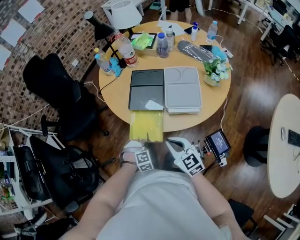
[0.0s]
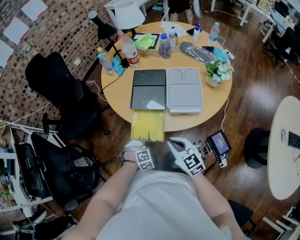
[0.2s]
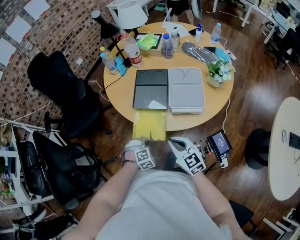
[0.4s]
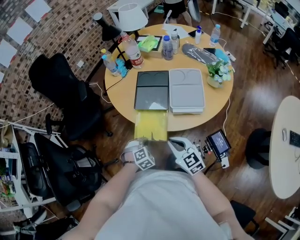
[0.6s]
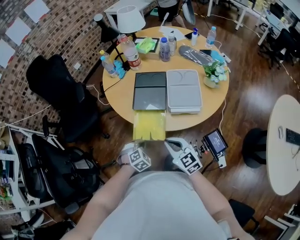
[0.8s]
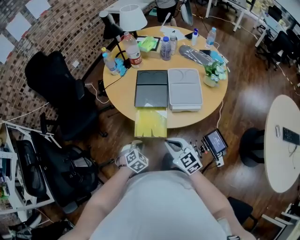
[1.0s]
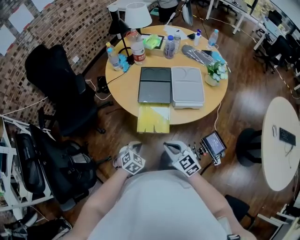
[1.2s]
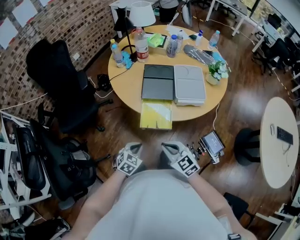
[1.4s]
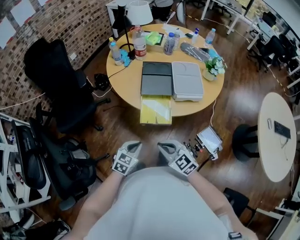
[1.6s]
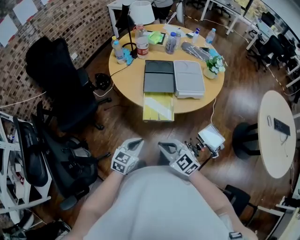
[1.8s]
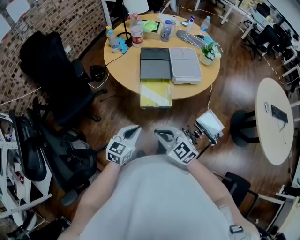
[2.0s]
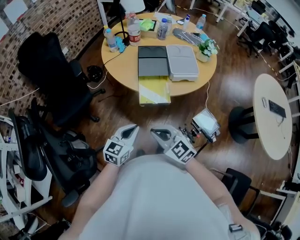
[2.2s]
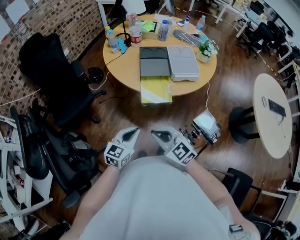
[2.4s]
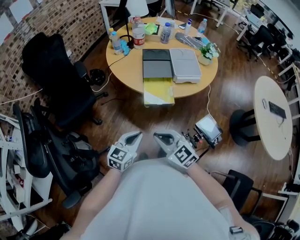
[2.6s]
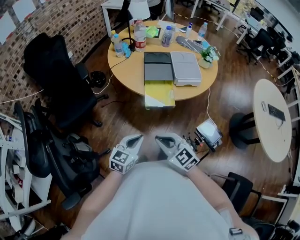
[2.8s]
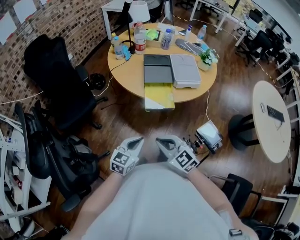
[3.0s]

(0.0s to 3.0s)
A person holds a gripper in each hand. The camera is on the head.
0.0s - 1.6s: The right gripper goes some 20 cm to the left and backward, while the left gripper heads upward, to the left and backward, covering about 20 cm, and rotates approximately 60 degrees.
1.6s - 3.0s: The right gripper is displaced backward and to the left by approximately 10 cm, while the left gripper travels backward and upward by about 10 cm.

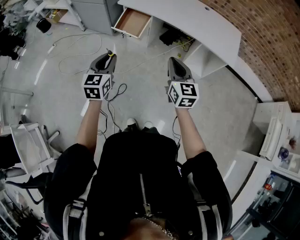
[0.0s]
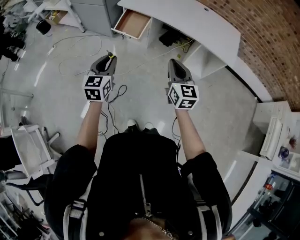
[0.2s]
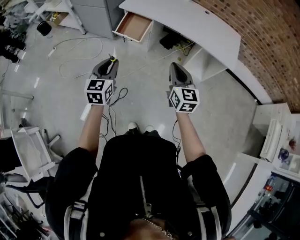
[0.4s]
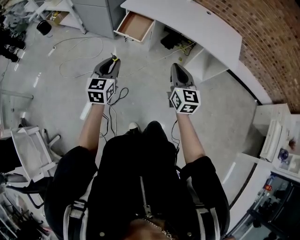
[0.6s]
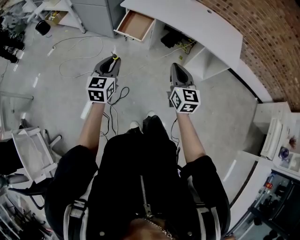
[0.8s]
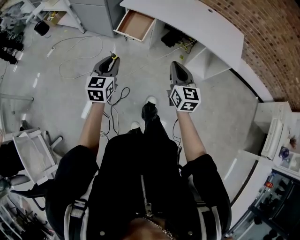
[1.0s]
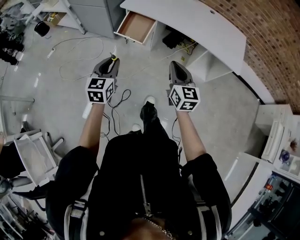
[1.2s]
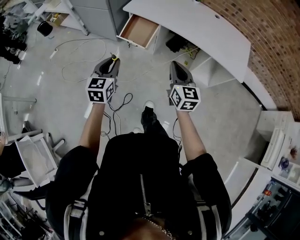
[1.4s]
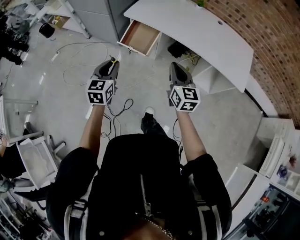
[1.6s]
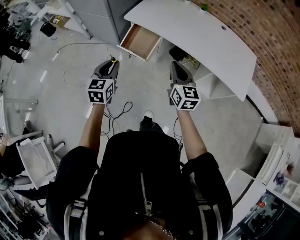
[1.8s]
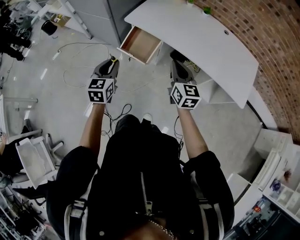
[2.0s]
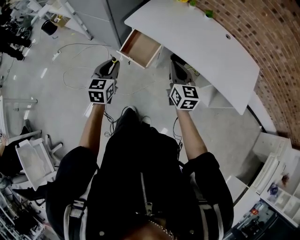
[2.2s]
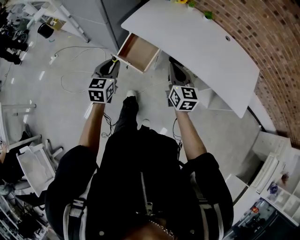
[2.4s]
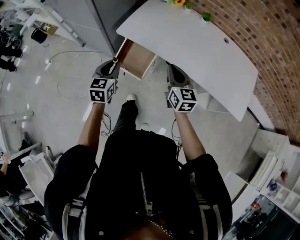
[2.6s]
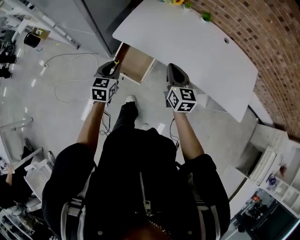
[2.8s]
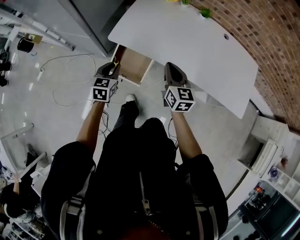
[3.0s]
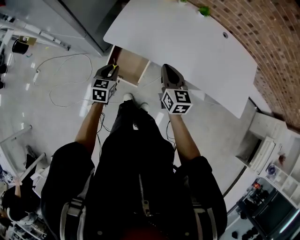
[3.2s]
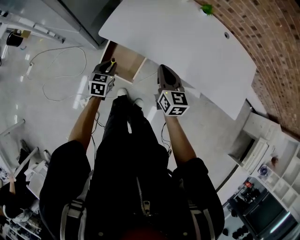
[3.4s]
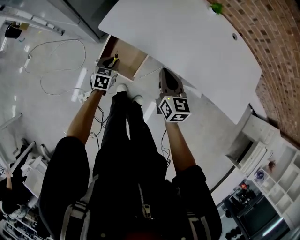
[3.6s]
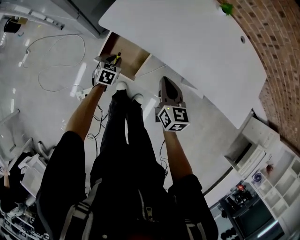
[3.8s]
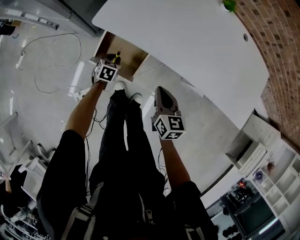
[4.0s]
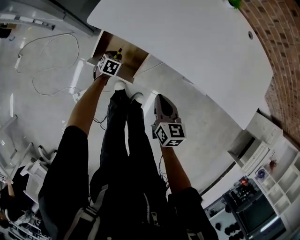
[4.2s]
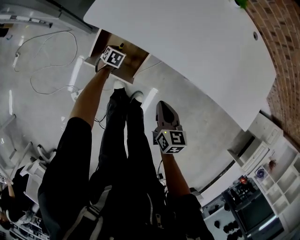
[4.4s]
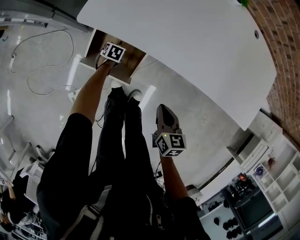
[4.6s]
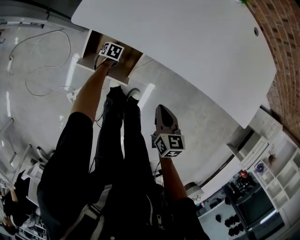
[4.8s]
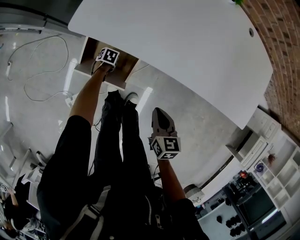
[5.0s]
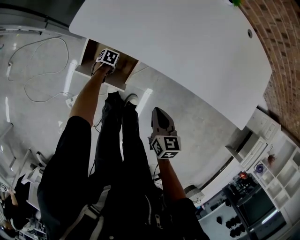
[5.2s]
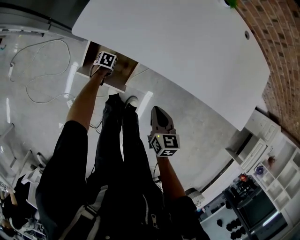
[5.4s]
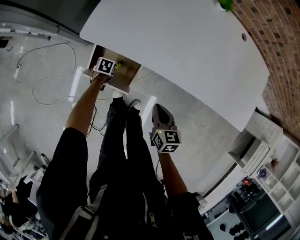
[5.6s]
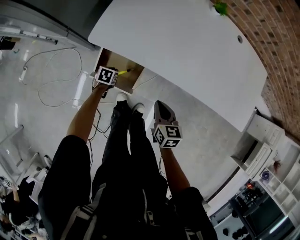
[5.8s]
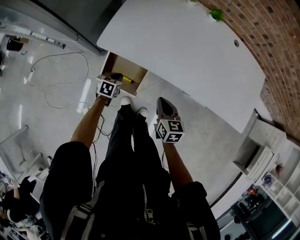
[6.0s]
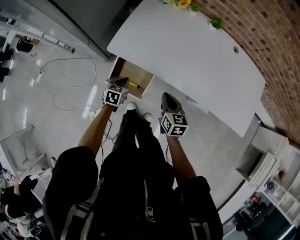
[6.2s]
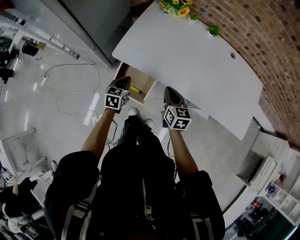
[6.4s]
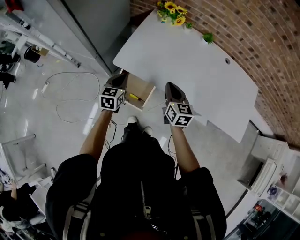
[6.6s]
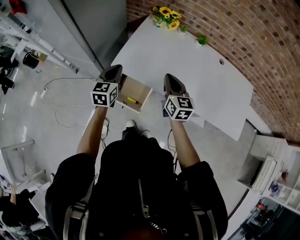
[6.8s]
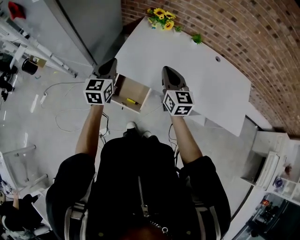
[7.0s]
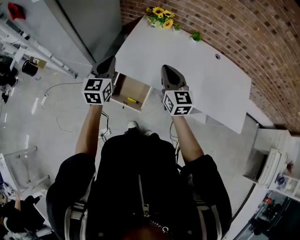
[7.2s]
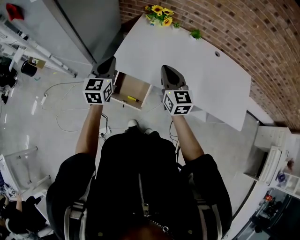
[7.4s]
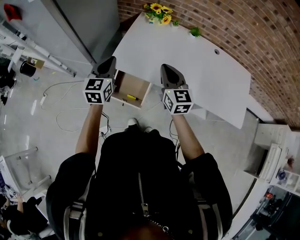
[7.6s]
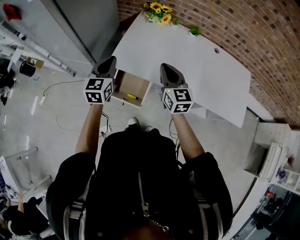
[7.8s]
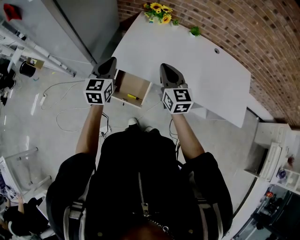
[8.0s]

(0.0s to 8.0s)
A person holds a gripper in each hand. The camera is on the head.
0.0s - 1.6s: The two grippers go about 20 cm forward.
1.6s - 3.2s: The right gripper shifts roughly 35 cm forward. Meanwhile the left gripper is displaced forward and downward by approximately 40 cm, and rotates roughly 20 degrees.
3.2s - 4.8s: The right gripper goes about 25 cm downward and backward, and rotates some 30 degrees, while the left gripper heads downward, covering about 40 cm, and tips its fingers downward by approximately 40 degrees.
4.8s - 6.4s: The left gripper travels upward by some 40 cm, and tilts its fingers roughly 40 degrees upward; the right gripper shifts some 15 cm upward.
6.4s - 8.0s: The grippers both shift upward by about 20 cm. The right gripper turns by approximately 20 degrees, while the left gripper turns by approximately 30 degrees.

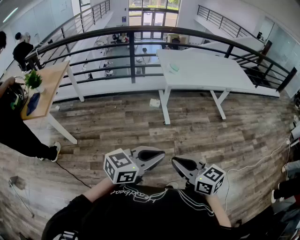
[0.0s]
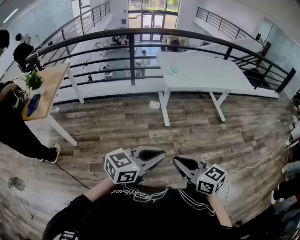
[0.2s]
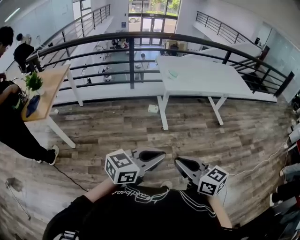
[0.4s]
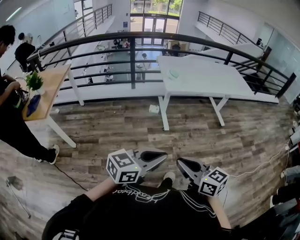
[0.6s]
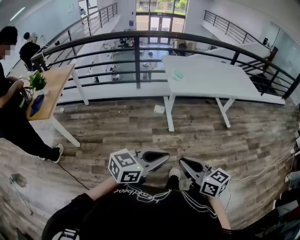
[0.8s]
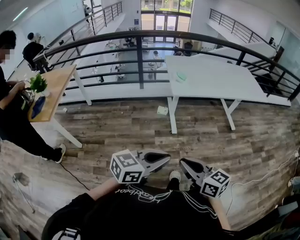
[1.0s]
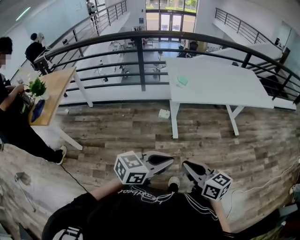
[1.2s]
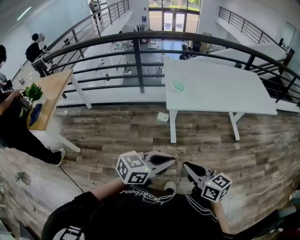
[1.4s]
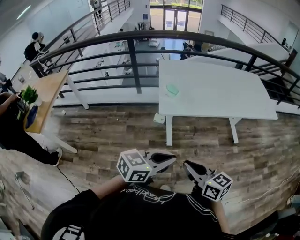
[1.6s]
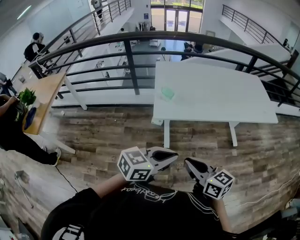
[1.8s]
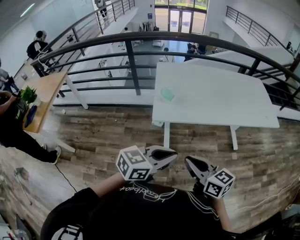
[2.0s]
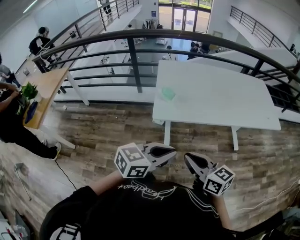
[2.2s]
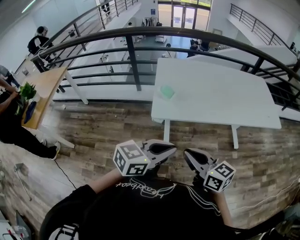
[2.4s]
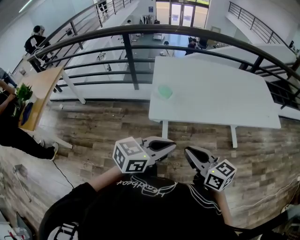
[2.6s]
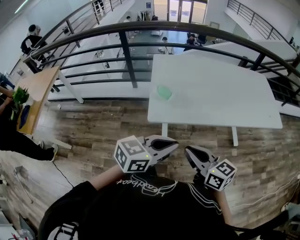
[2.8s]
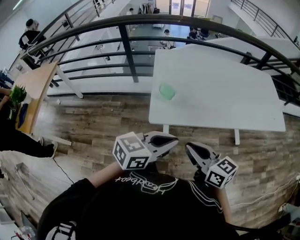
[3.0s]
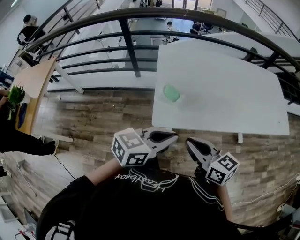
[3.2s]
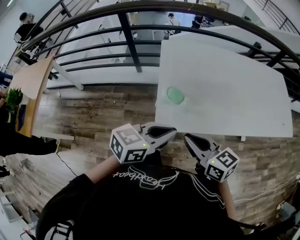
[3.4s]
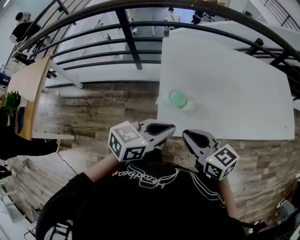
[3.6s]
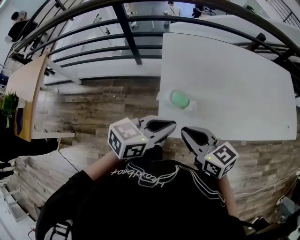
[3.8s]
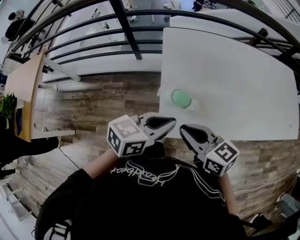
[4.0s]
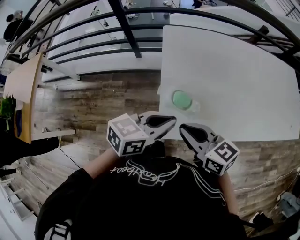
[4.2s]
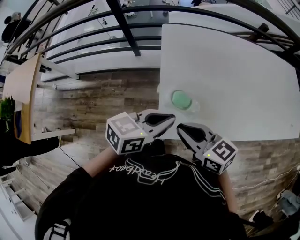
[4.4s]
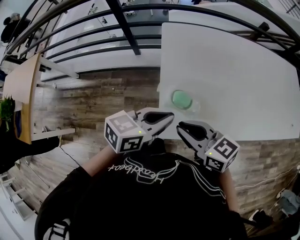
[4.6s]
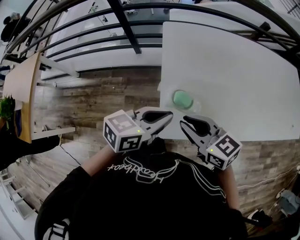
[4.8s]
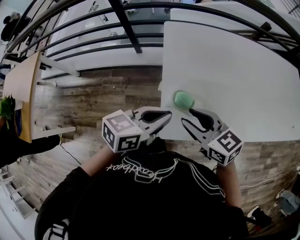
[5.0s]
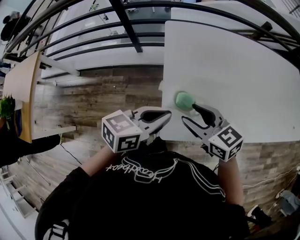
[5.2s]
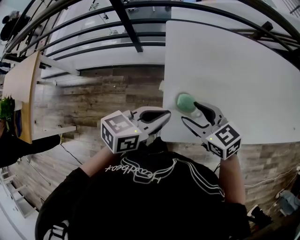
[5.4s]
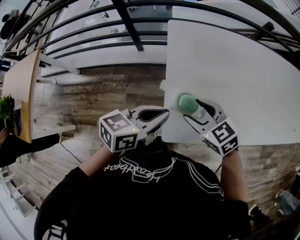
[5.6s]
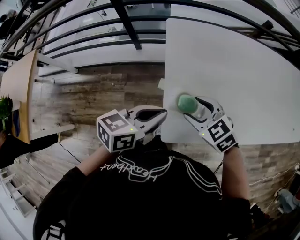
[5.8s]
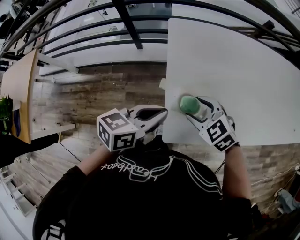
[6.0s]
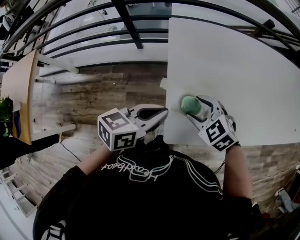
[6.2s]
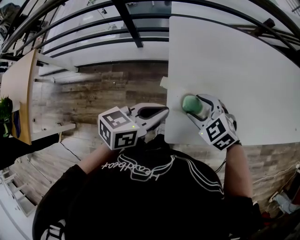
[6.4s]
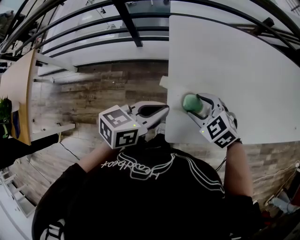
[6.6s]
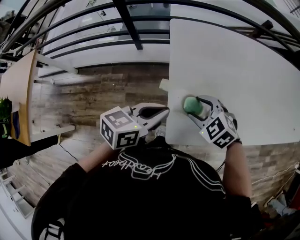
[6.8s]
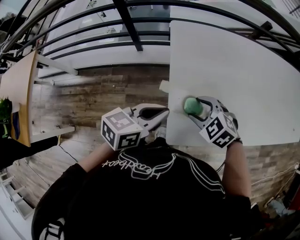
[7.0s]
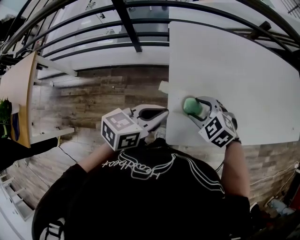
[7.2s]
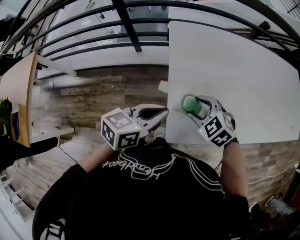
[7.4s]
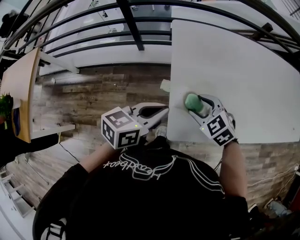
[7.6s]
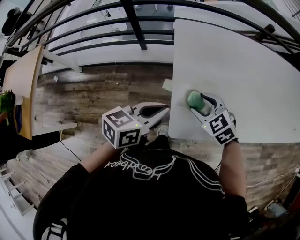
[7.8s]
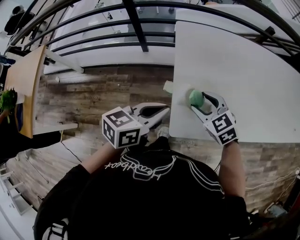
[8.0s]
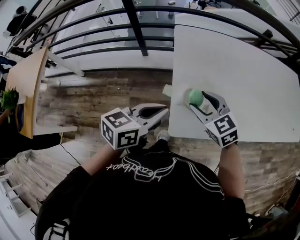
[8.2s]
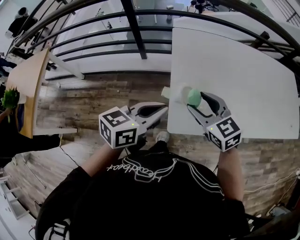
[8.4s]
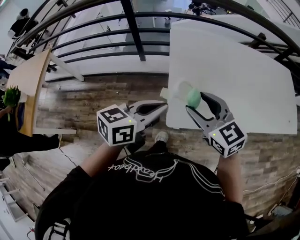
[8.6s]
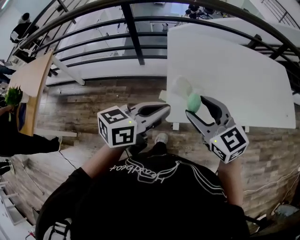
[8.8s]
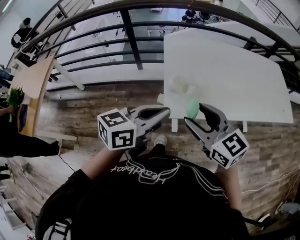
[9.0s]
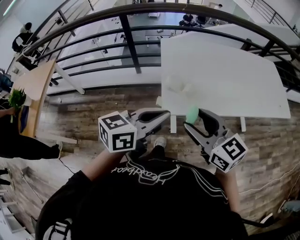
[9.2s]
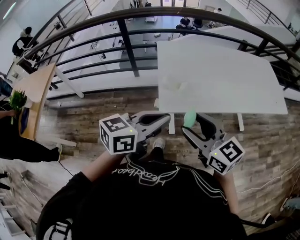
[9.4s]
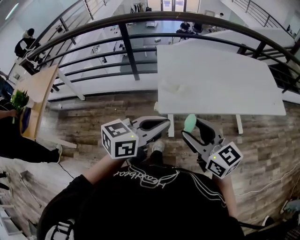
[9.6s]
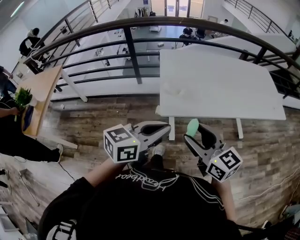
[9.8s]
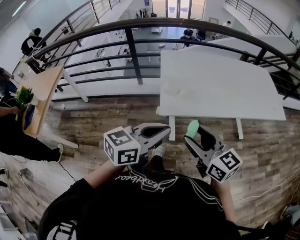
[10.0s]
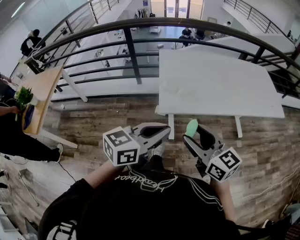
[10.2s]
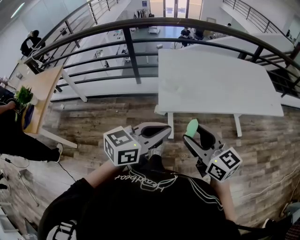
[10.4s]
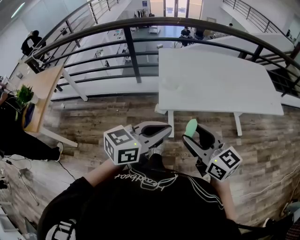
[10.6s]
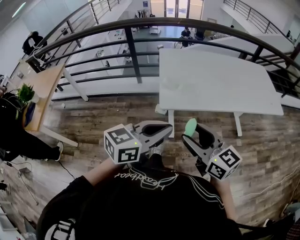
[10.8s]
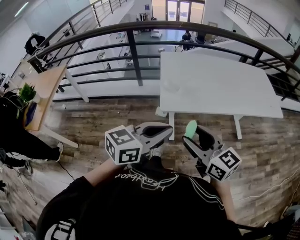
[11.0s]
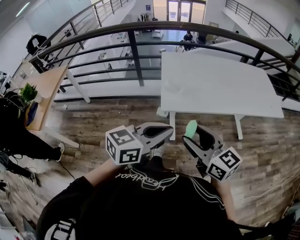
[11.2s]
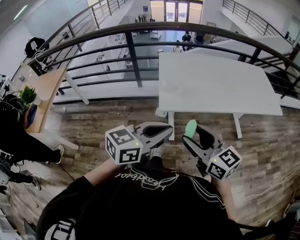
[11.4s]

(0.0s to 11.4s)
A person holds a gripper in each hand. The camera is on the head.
0.0s - 1.4s: The grippers both shift forward and to the right by some 30 cm.
1.4s - 2.8s: Both grippers move forward, approximately 25 cm.
2.8s - 4.2s: Both grippers move forward and to the left, about 30 cm.
4.2s - 5.6s: The left gripper changes place by roughly 5 cm; the right gripper travels forward and downward by some 10 cm, turns by some 30 degrees, and opens.
5.6s - 7.2s: The right gripper turns by some 30 degrees.
7.2s - 8.6s: The left gripper is displaced backward and upward by approximately 15 cm, while the right gripper travels upward and backward by some 20 cm, and angles its fingers upward, by about 30 degrees.
8.6s - 10.0s: The left gripper travels backward and to the right by some 25 cm. Meanwhile the right gripper goes approximately 25 cm backward, and rotates roughly 20 degrees.
10.0s - 11.4s: The grippers both shift backward by some 5 cm.

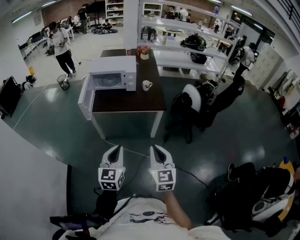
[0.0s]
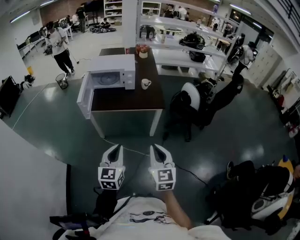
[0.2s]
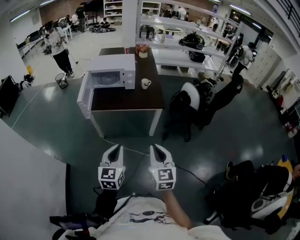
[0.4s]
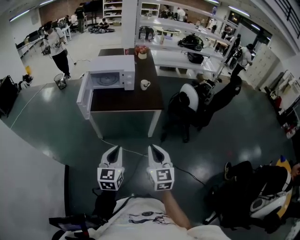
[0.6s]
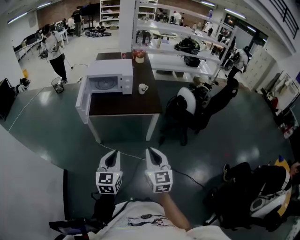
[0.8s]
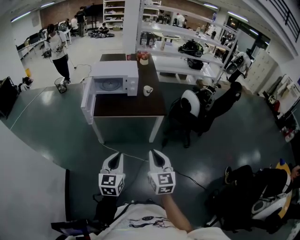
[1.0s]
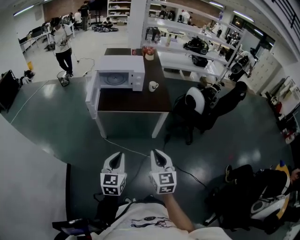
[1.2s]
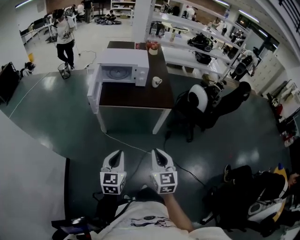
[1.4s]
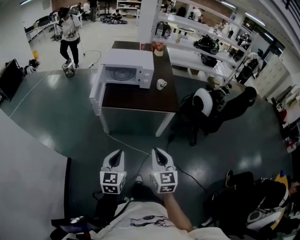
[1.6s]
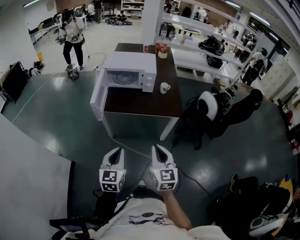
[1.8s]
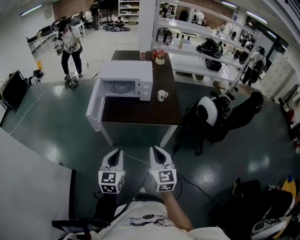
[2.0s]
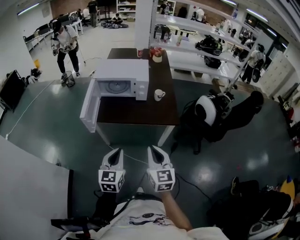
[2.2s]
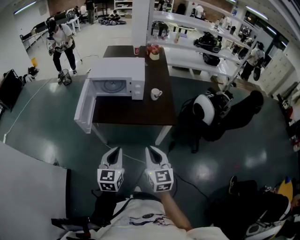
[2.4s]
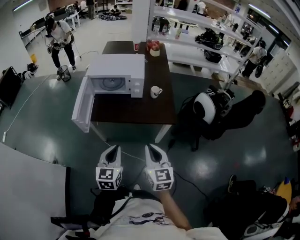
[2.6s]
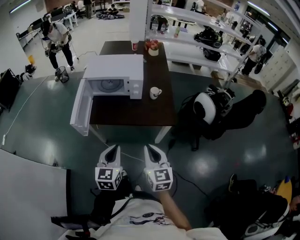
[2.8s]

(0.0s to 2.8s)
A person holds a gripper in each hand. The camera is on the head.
0.0s - 1.4s: The two grippers go roughly 5 cm to the left.
1.4s - 2.8s: Both grippers move forward, roughly 20 cm.
